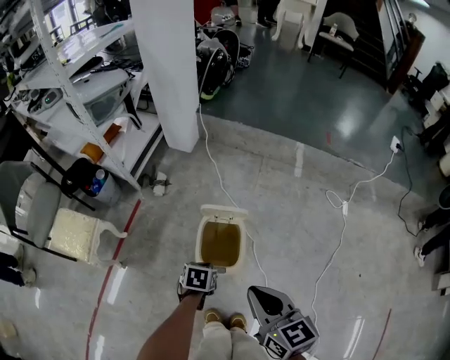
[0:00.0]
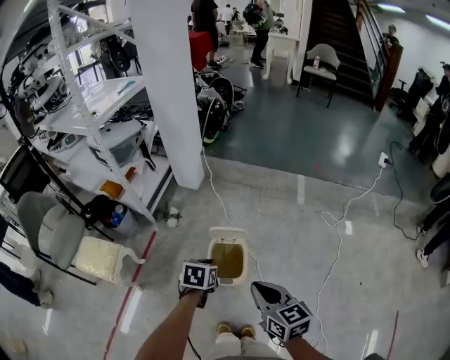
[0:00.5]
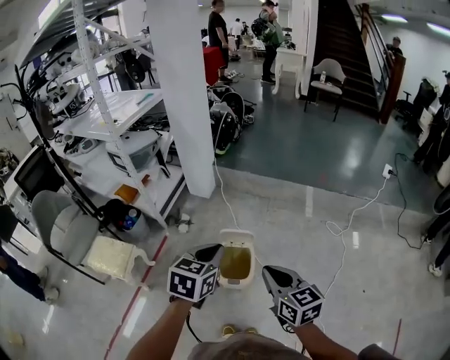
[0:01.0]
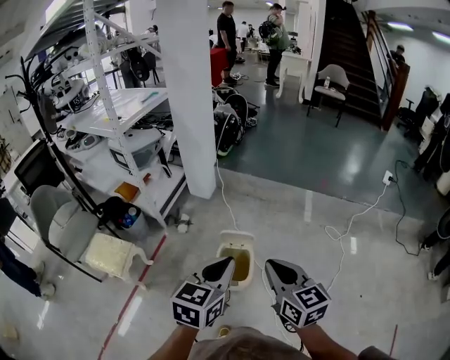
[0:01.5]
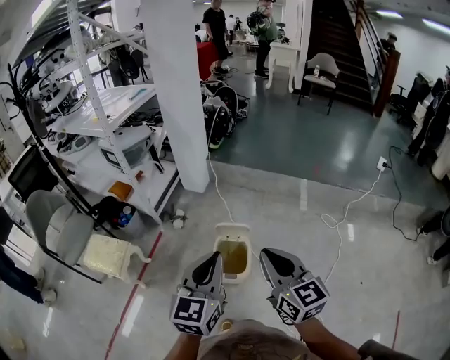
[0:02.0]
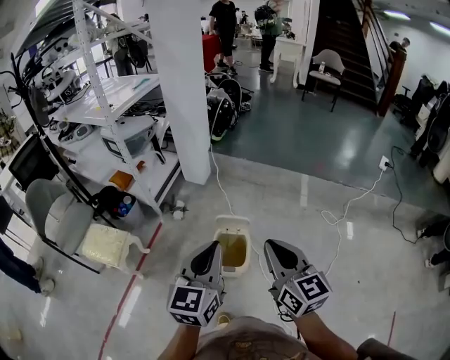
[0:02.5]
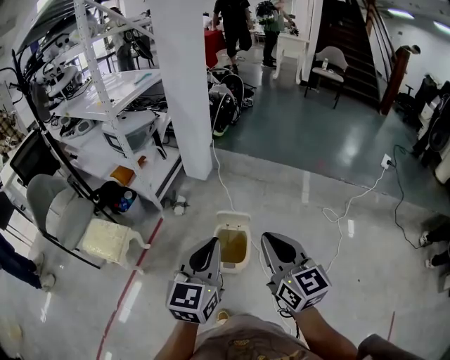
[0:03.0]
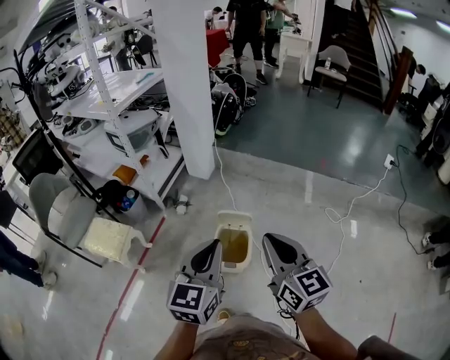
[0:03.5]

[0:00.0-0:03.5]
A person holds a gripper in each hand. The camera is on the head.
0:00.0 to 0:02.0: The left gripper heads upward, covering some 50 cm, and tilts its fingers some 60 degrees upward; the right gripper moves upward, roughly 20 cm.
0:02.0 to 0:03.5: The grippers move only a little.

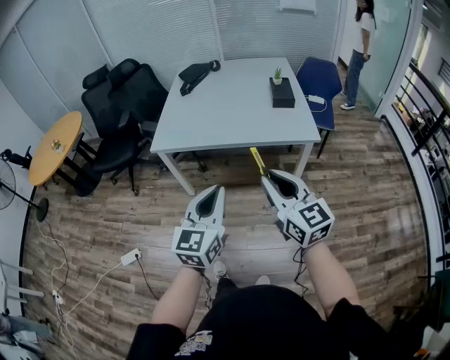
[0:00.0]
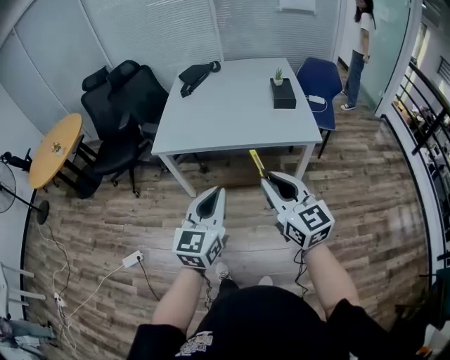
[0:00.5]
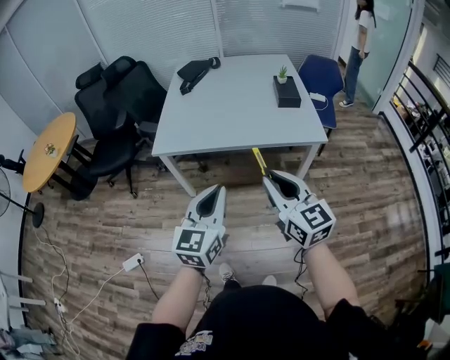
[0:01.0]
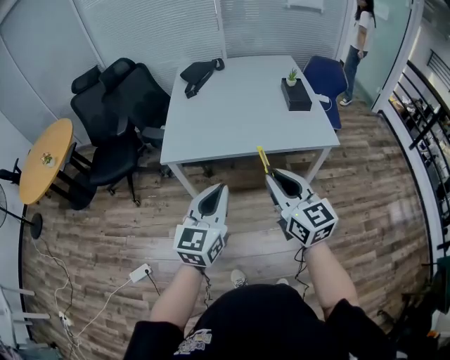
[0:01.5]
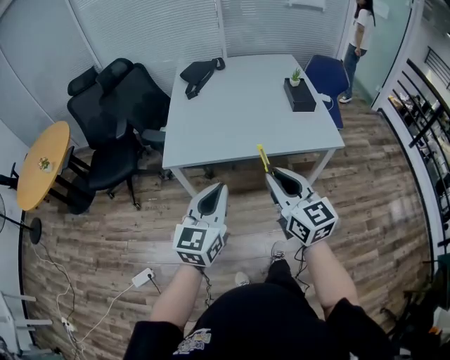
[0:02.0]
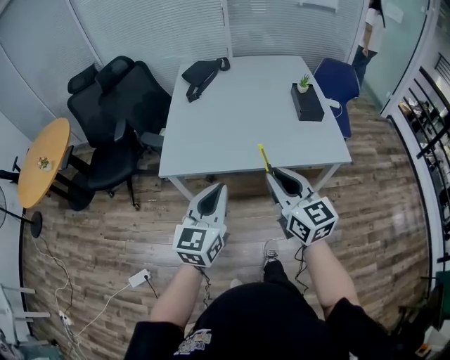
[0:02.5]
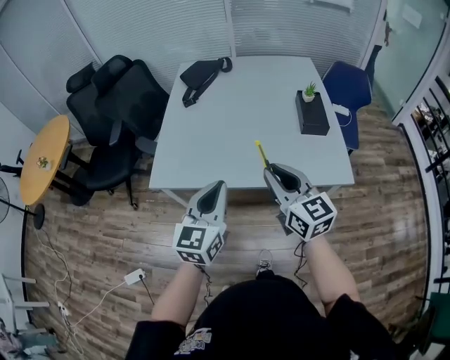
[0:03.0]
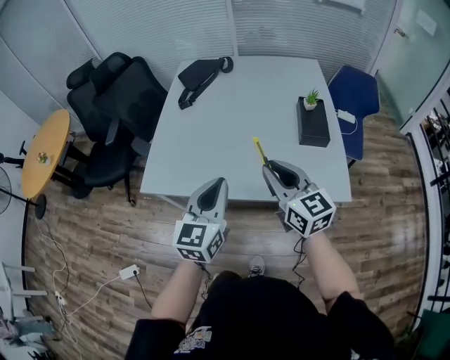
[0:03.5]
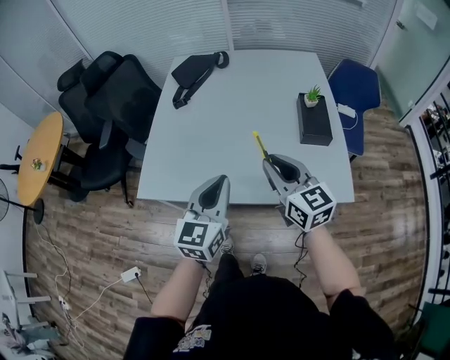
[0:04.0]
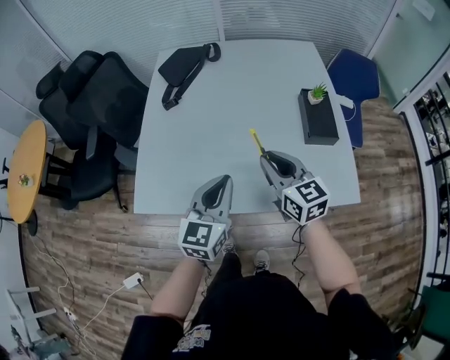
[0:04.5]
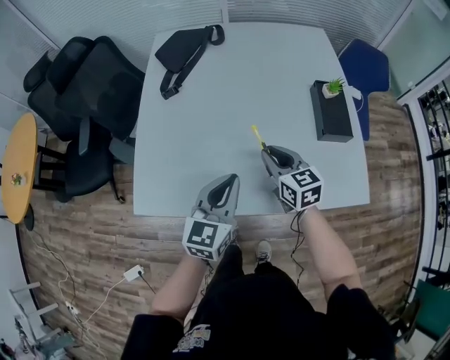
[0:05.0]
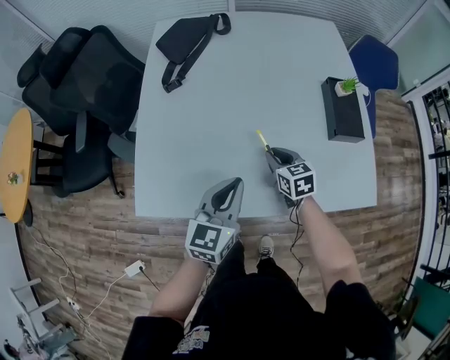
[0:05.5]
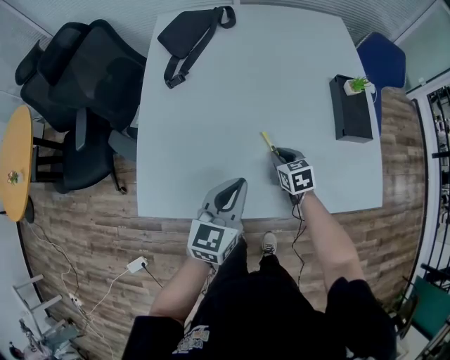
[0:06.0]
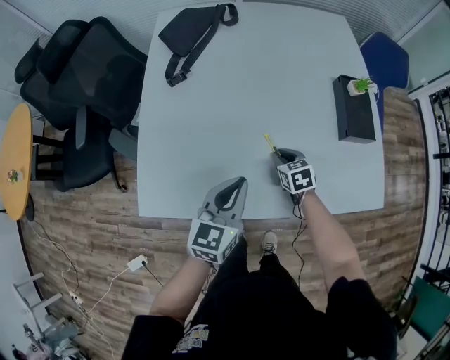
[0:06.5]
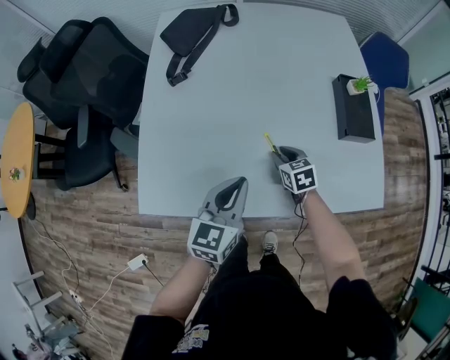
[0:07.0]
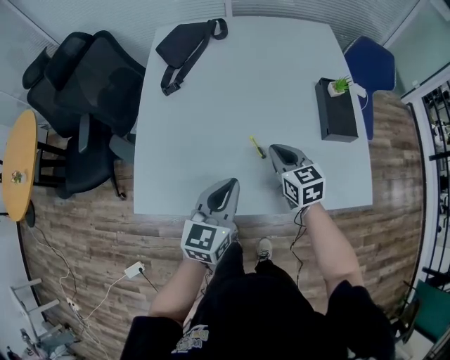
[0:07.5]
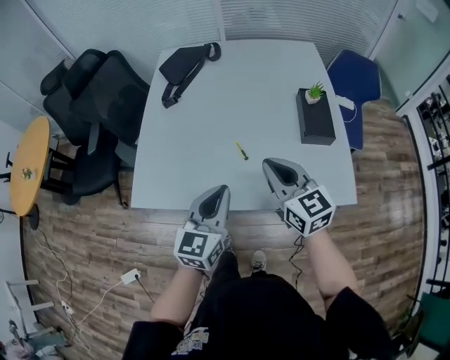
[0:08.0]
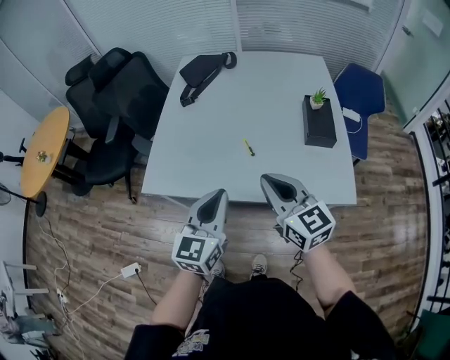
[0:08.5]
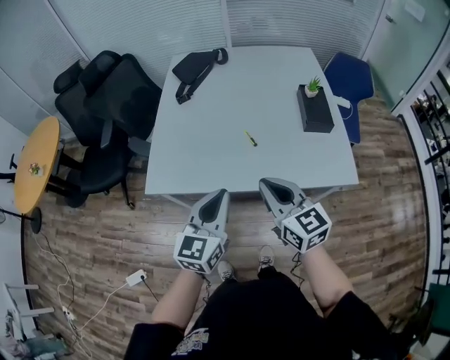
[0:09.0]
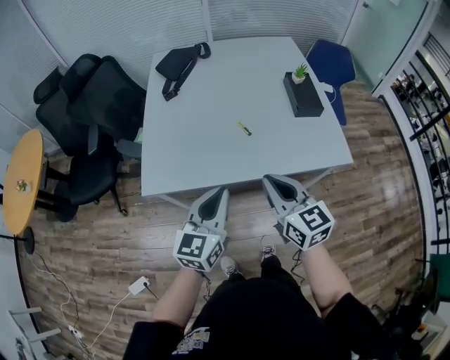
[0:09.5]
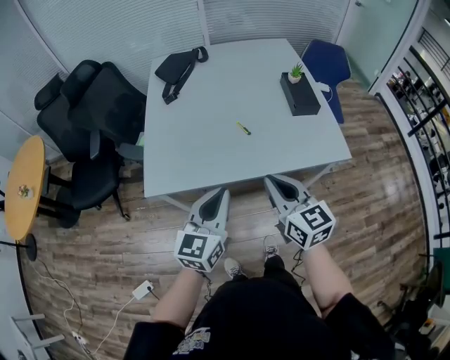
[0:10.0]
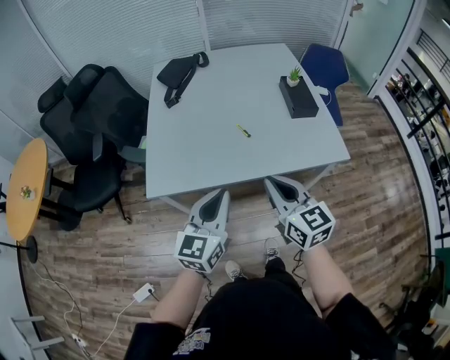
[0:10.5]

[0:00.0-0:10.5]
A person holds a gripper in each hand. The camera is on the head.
0:00.0 to 0:02.0: Both grippers move to the left and forward, about 20 cm.
0:02.0 to 0:04.0: The grippers both shift forward and to the right by roughly 35 cm.
0:04.0 to 0:06.5: The left gripper travels downward, forward and to the left by about 20 cm. The right gripper heads downward and forward, covering some 35 cm, and tilts its fingers some 40 degrees downward.
0:06.5 to 0:08.5: The left gripper goes roughly 20 cm backward and upward. Meanwhile the right gripper moves upward and backward, about 40 cm, and tips its fingers upward by about 40 degrees.
0:08.5 to 0:10.5: The right gripper goes approximately 10 cm backward and to the left. The left gripper shifts about 10 cm to the left and backward.

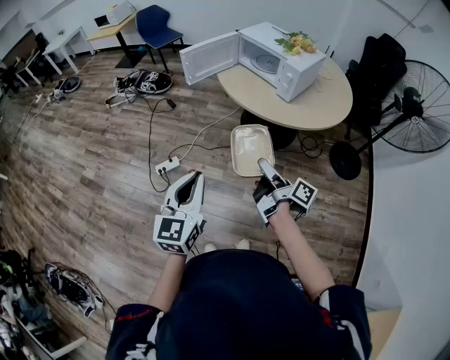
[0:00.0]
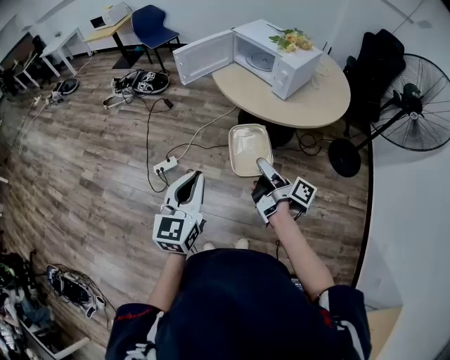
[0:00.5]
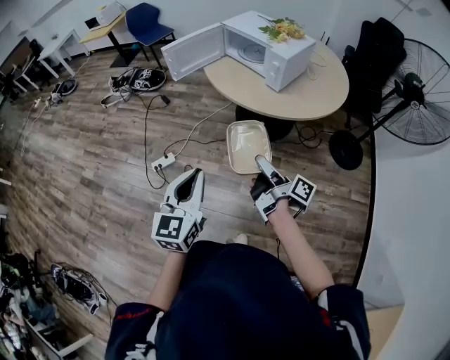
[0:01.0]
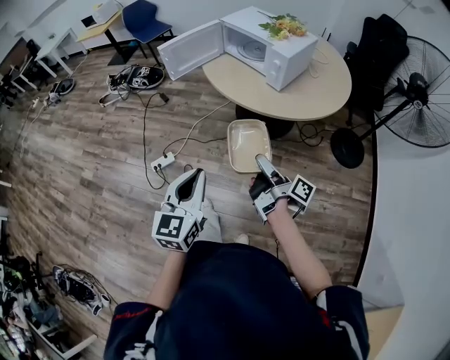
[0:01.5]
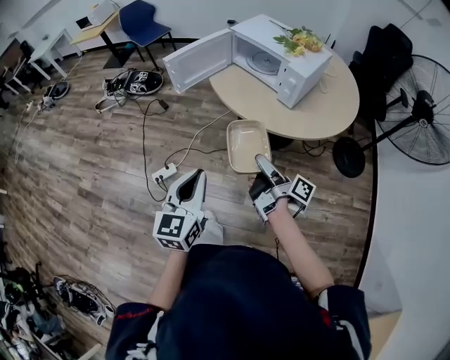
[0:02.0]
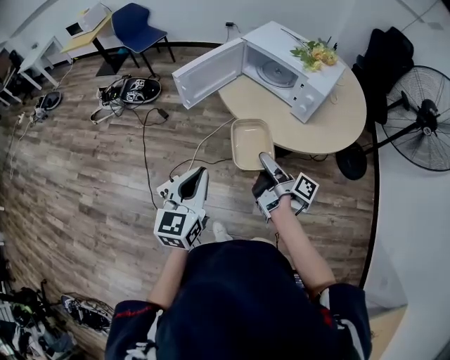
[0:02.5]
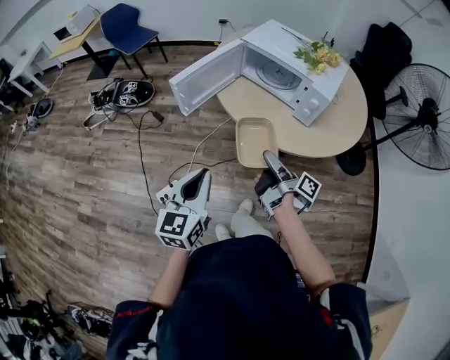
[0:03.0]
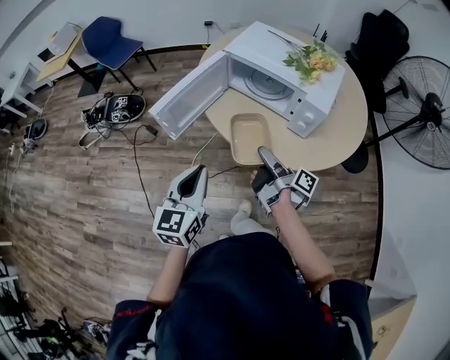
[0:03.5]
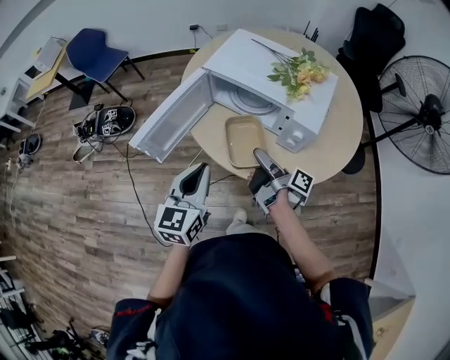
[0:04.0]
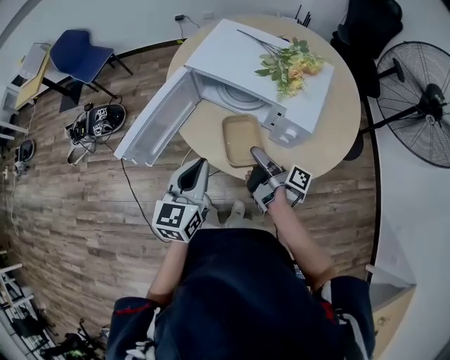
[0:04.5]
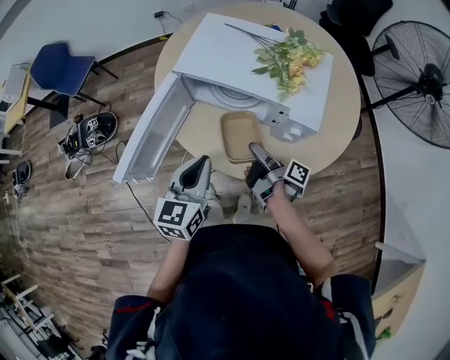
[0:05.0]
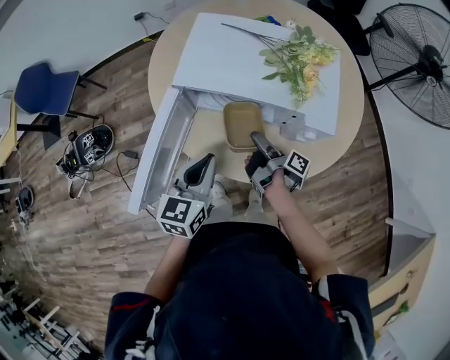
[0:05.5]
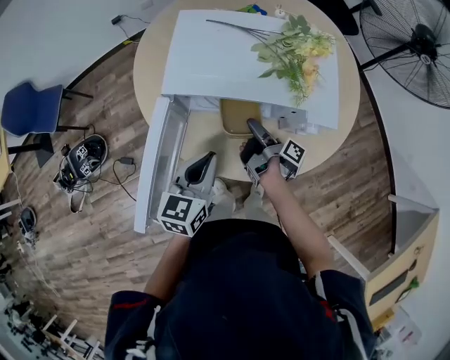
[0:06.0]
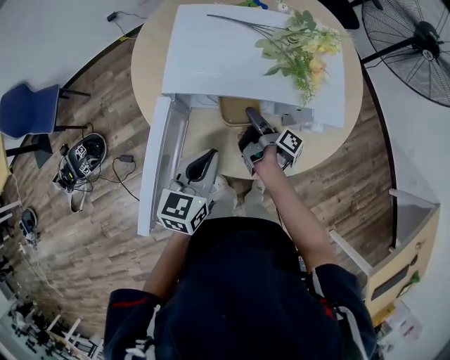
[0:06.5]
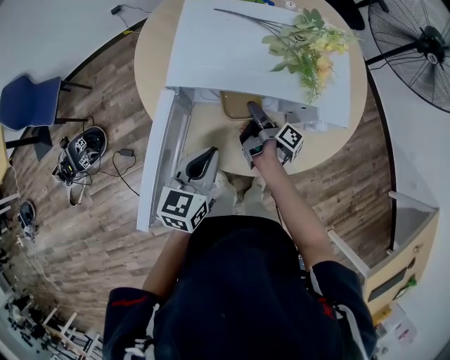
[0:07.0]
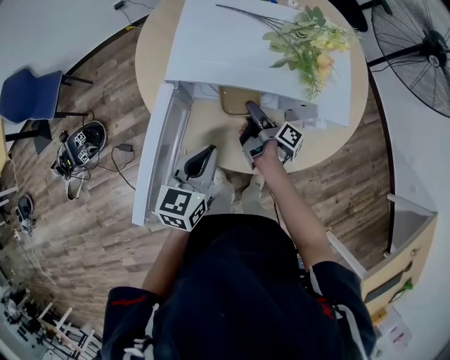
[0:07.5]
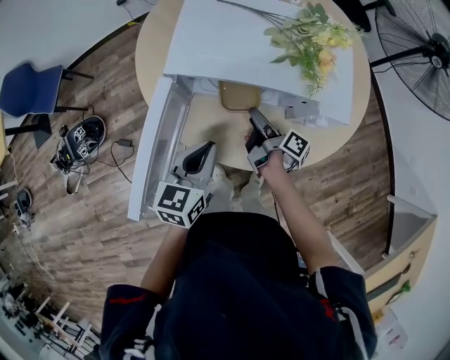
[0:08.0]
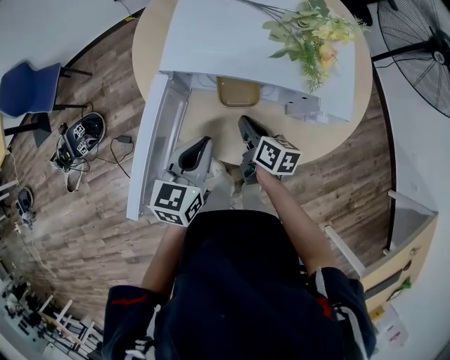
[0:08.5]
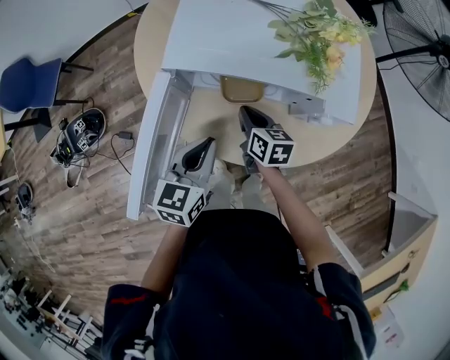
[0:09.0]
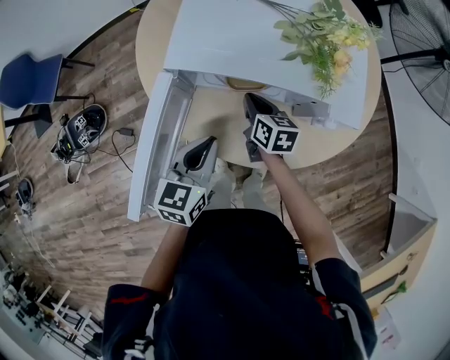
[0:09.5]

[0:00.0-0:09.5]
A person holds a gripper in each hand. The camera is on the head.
0:00.0 to 0:02.0: The left gripper shifts by some 15 cm.
0:02.0 to 0:04.0: The left gripper moves approximately 40 cm.
0:04.0 to 0:05.5: The left gripper changes place by about 15 cm, and rotates approximately 20 degrees.

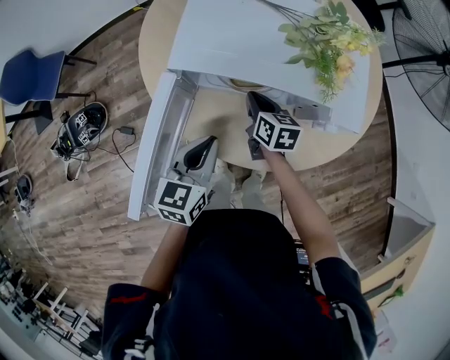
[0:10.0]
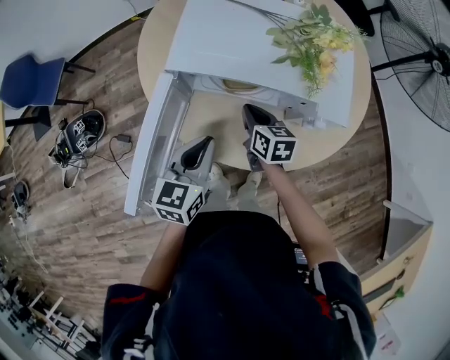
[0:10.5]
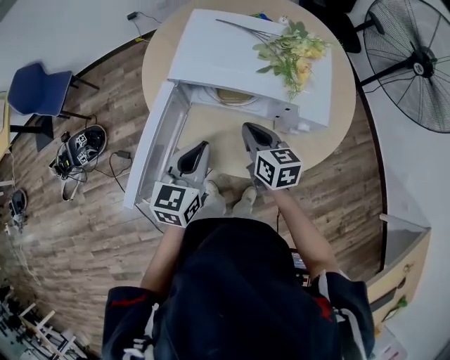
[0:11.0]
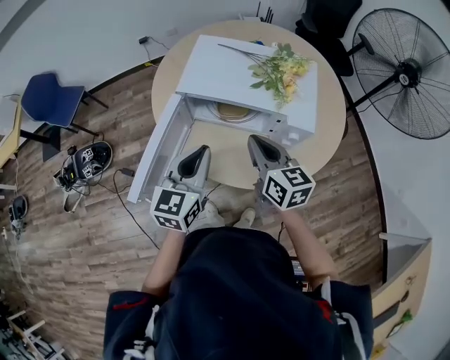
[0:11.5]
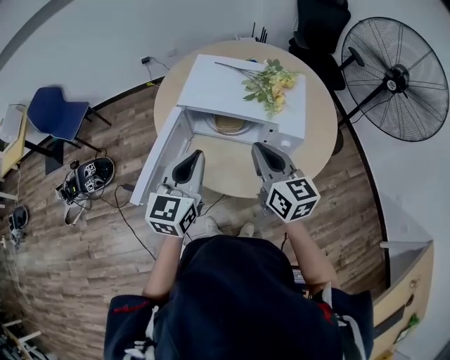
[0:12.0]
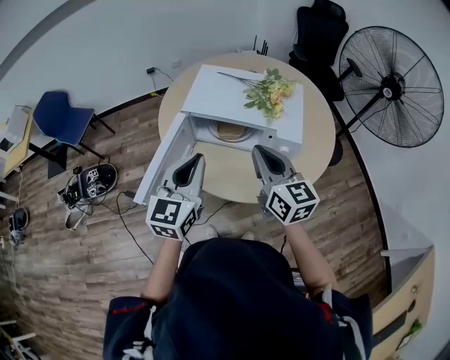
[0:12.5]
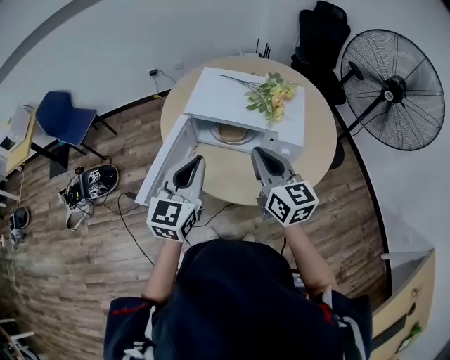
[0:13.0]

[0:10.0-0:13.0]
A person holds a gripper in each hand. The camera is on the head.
0:10.0 to 0:11.5: The left gripper goes some 15 cm upward.
0:11.5 to 0:13.0: The left gripper moves upward, some 5 cm.
